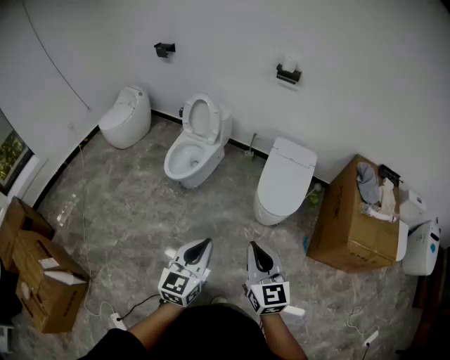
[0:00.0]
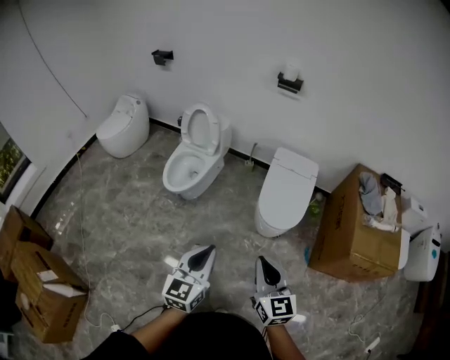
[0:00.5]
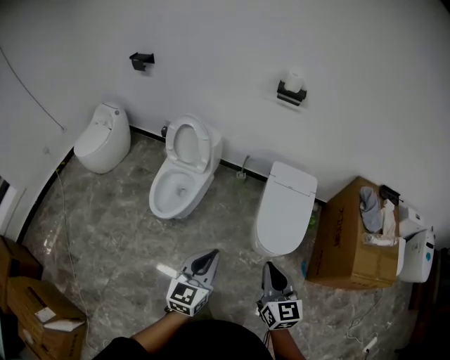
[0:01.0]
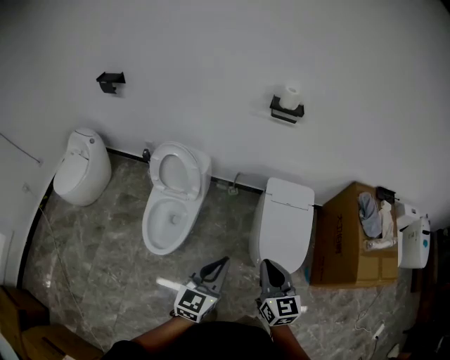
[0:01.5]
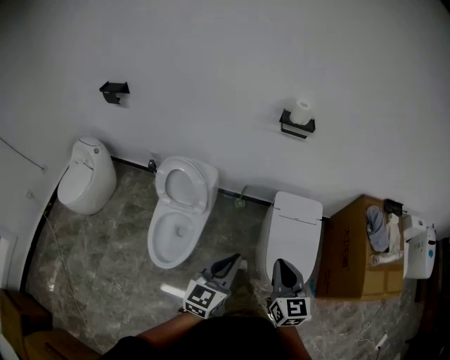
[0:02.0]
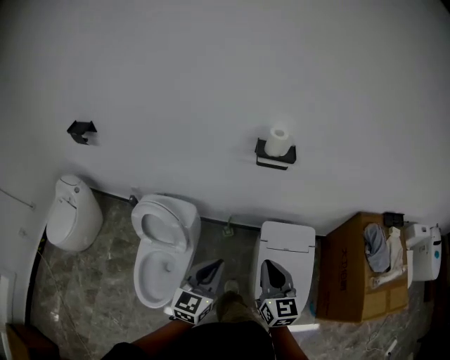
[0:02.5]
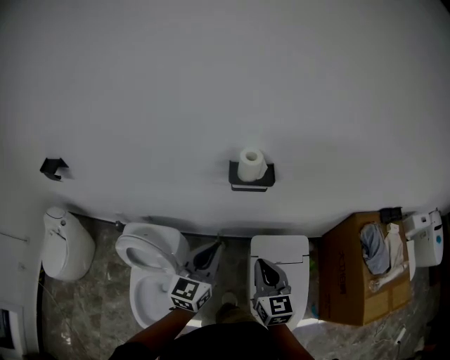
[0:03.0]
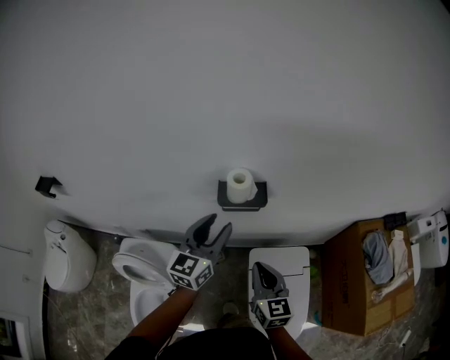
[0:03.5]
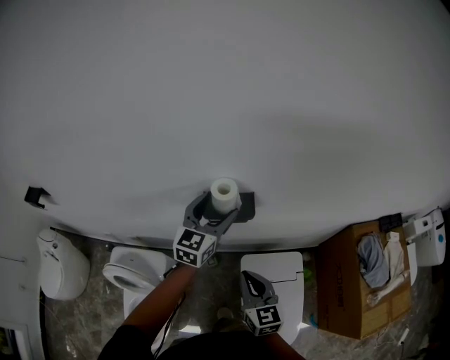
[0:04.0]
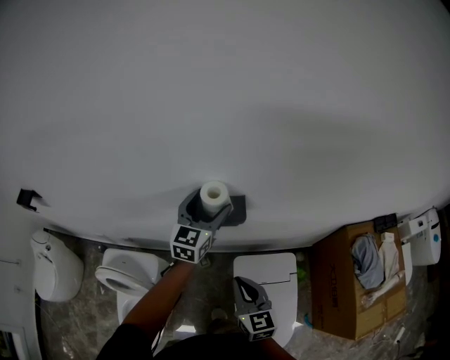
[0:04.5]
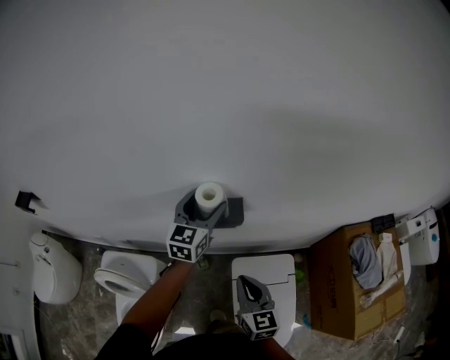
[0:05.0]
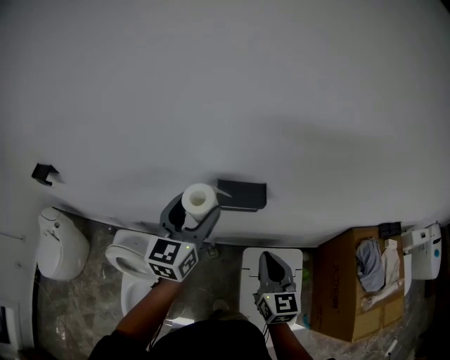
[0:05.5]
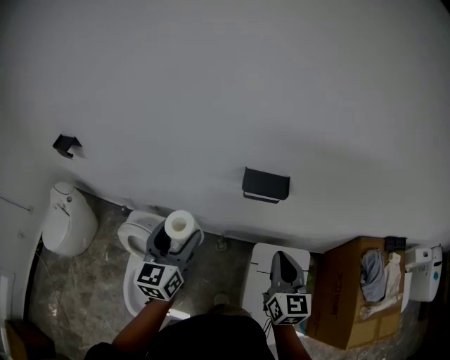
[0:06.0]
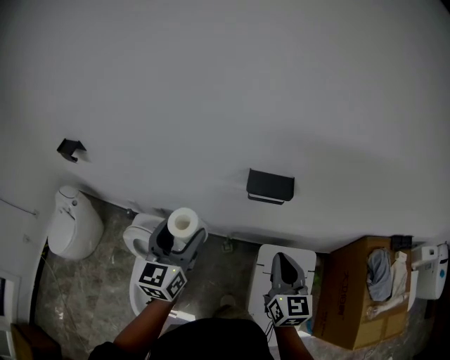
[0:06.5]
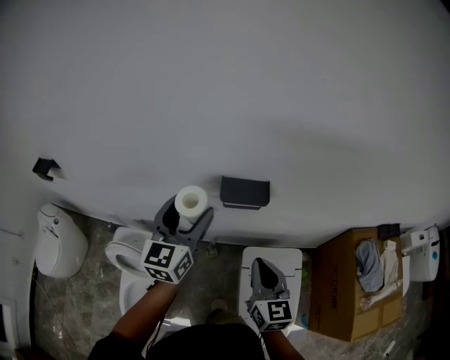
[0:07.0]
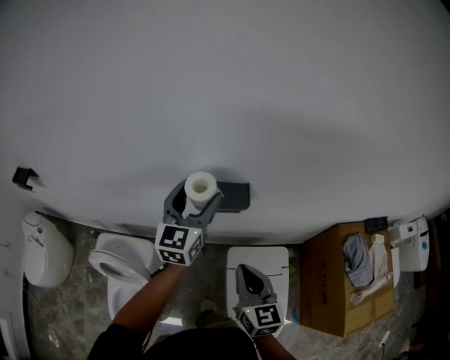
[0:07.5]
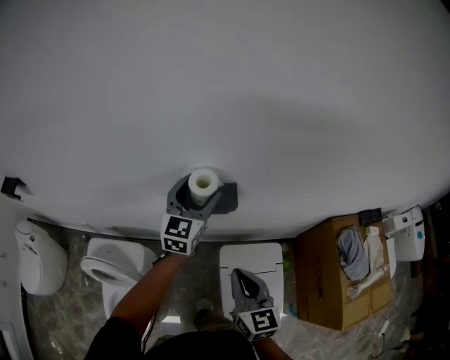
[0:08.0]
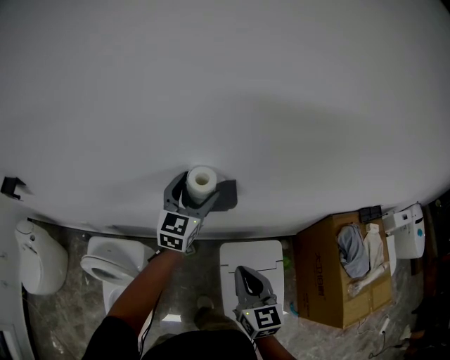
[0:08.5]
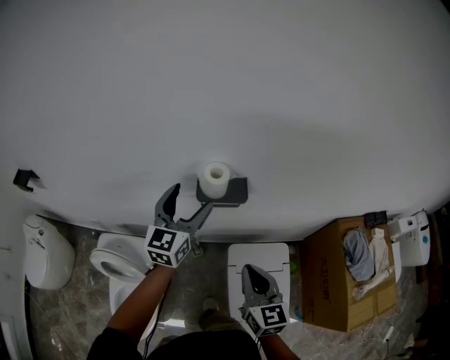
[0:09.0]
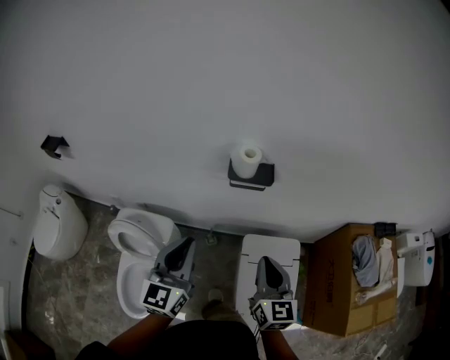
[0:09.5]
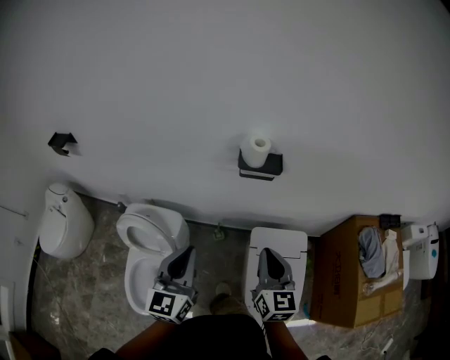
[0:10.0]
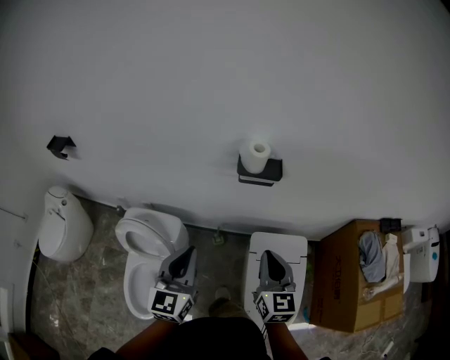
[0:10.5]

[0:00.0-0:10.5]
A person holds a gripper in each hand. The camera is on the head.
0:00.0 to 0:02.0: Both grippers are carried forward, about 60 cm. The left gripper rotates about 20 degrees, while the right gripper turns by about 20 degrees.
0:02.0 to 0:04.0: Both grippers are carried forward, approximately 60 cm. The left gripper opens.
0:04.0 to 0:06.5: The left gripper is displaced backward and to the left by about 30 cm, and changes its angle by about 30 degrees, while the right gripper heads upward and backward, covering approximately 10 cm.
0:06.5 to 0:08.5: The right gripper shifts by some 5 cm; the left gripper goes approximately 30 cm forward and to the right, and turns by about 20 degrees.
0:08.5 to 0:10.5: The right gripper goes approximately 10 cm backward. Meanwhile the left gripper is displaced backward and to the left by some 40 cm, rotates roughly 20 degrees, and closes its fingers.

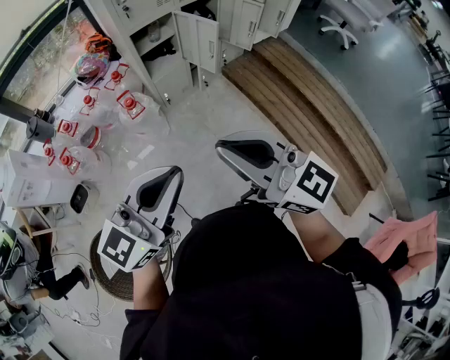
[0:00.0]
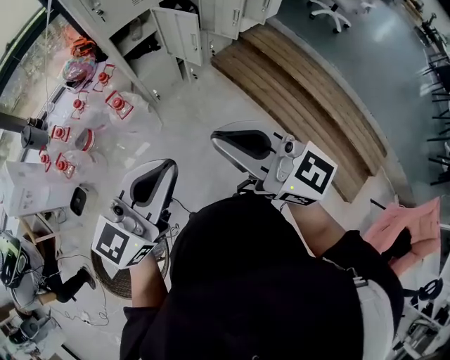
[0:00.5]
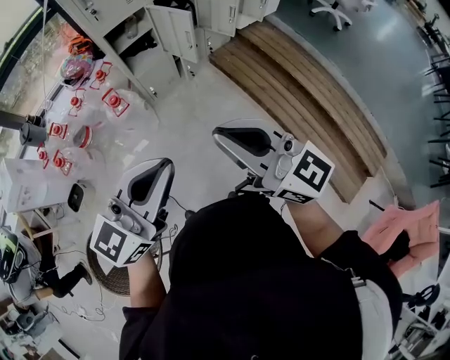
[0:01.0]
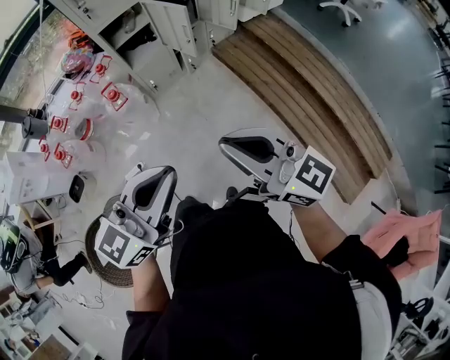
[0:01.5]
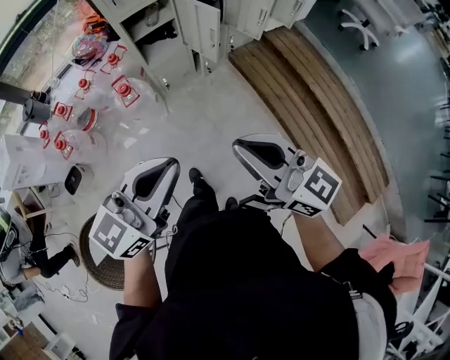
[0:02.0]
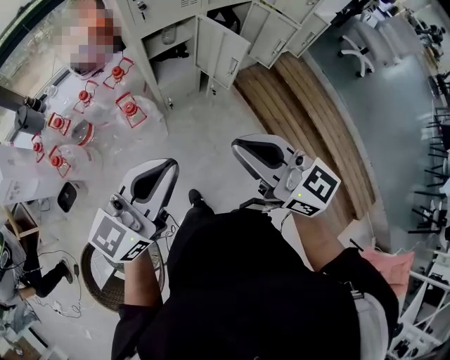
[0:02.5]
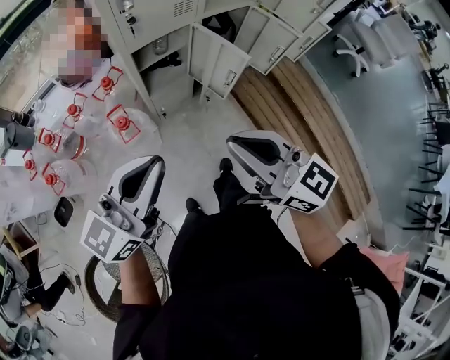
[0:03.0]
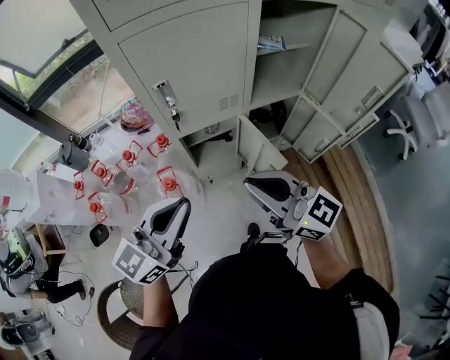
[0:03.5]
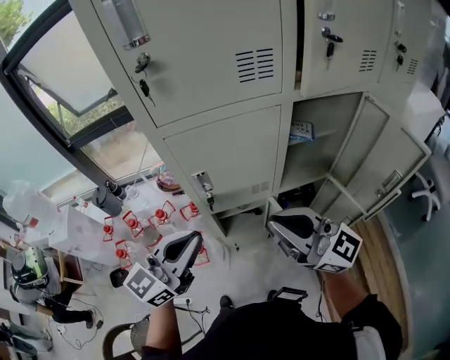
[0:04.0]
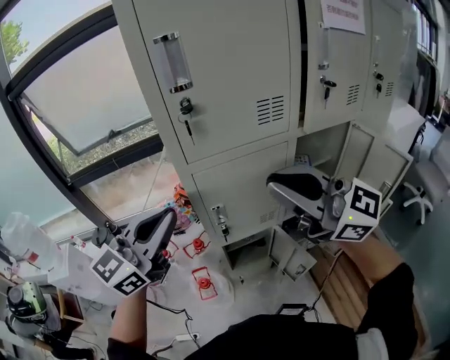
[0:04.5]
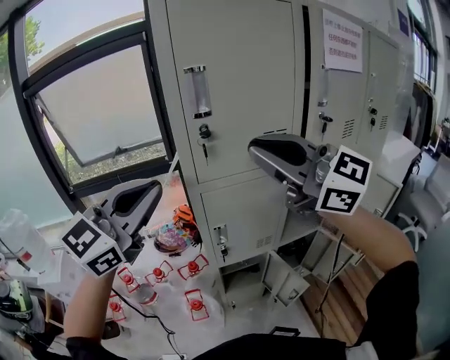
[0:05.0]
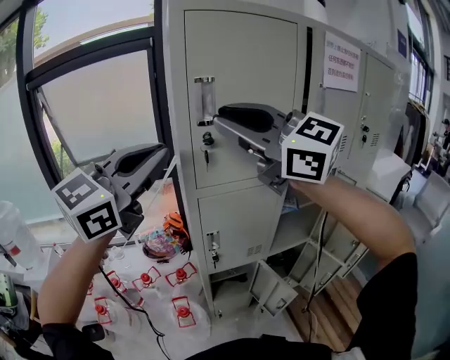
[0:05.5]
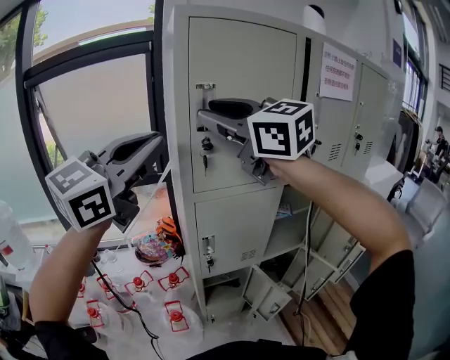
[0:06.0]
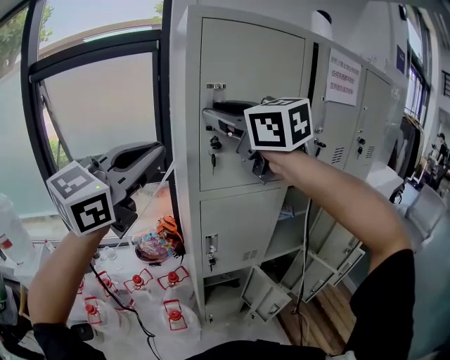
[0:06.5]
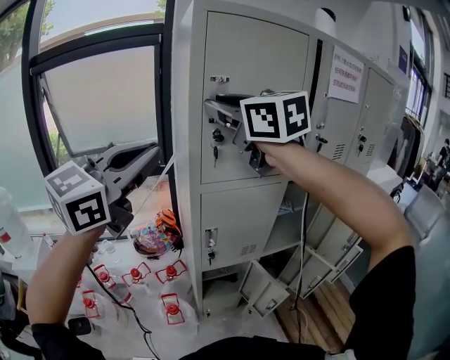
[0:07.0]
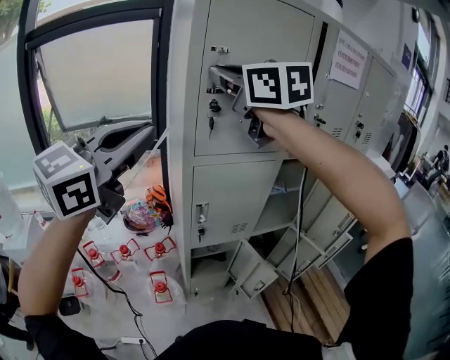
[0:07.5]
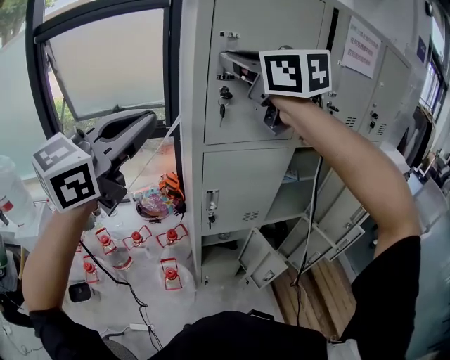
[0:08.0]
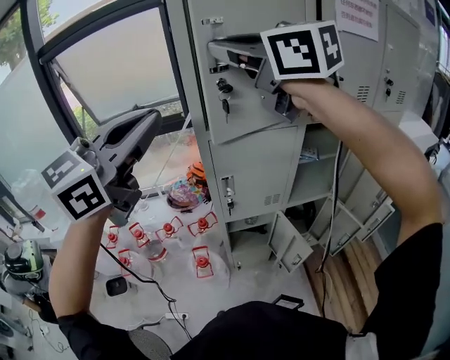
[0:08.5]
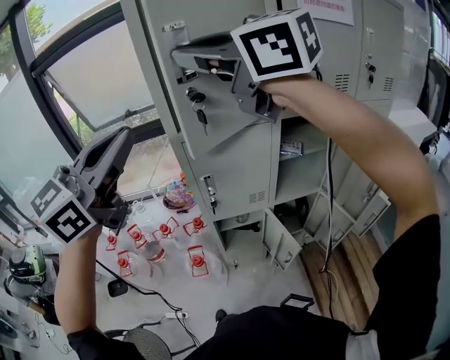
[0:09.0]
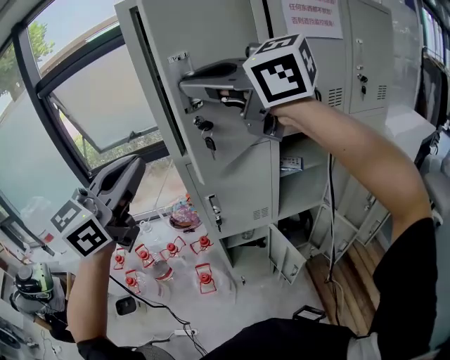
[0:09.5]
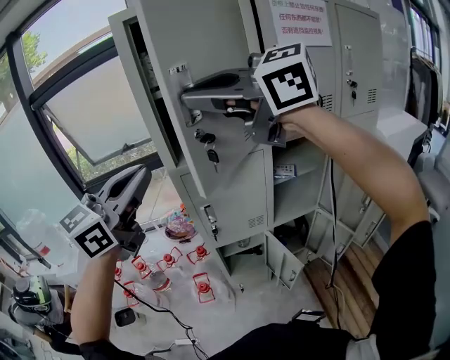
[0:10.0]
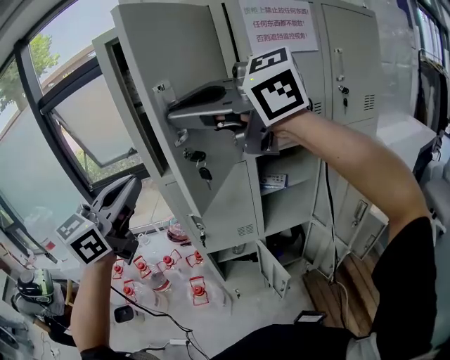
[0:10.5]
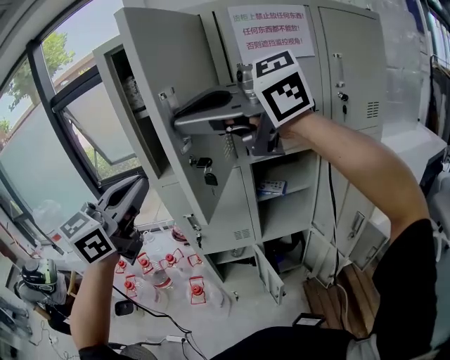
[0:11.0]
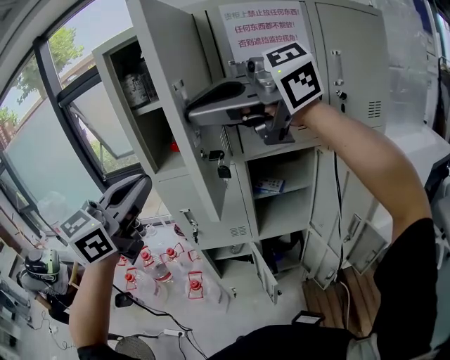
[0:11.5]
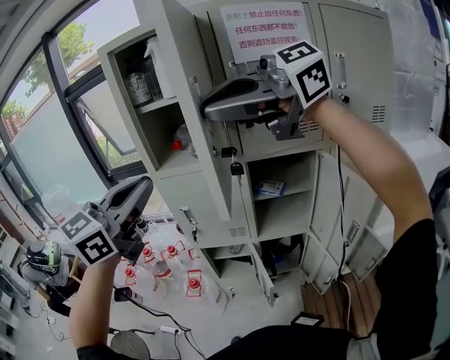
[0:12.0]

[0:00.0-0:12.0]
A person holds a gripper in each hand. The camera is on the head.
0:00.0 to 0:02.0: The right gripper moves to the right, forward and downward, about 15 cm, while the left gripper travels forward and to the right by some 10 cm.
0:02.0 to 0:04.0: The two grippers travel together, forward, some 50 cm. The left gripper swivels approximately 20 degrees. The right gripper changes its angle by roughly 30 degrees.
0:04.0 to 0:06.0: The right gripper shifts approximately 40 cm upward and to the left, turns by some 30 degrees, and opens. Meanwhile the left gripper goes about 35 cm upward, and swivels roughly 20 degrees.
0:06.0 to 0:08.0: The left gripper heads downward, covering some 5 cm. Meanwhile the right gripper closes its fingers.
0:08.0 to 0:10.0: The right gripper is displaced backward and to the right by about 15 cm, and swivels some 30 degrees; the left gripper travels to the right by roughly 10 cm.
0:10.0 to 0:12.0: The right gripper shifts by approximately 20 cm, and swivels approximately 40 degrees; the left gripper moves roughly 15 cm.

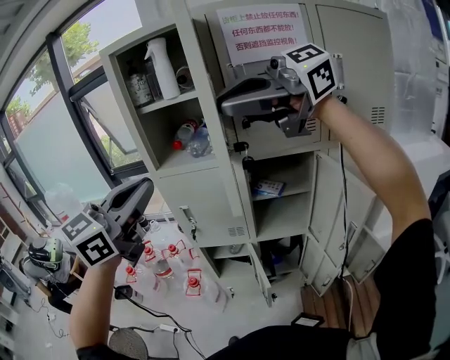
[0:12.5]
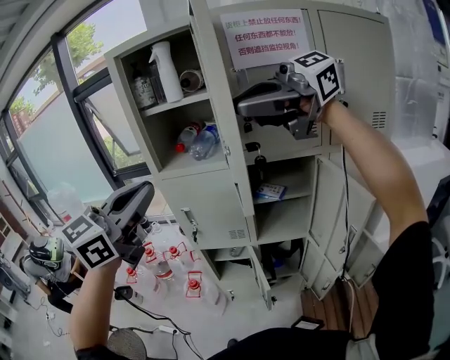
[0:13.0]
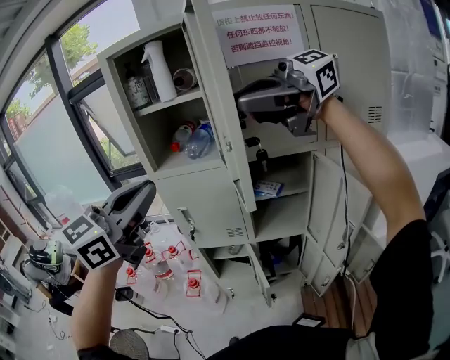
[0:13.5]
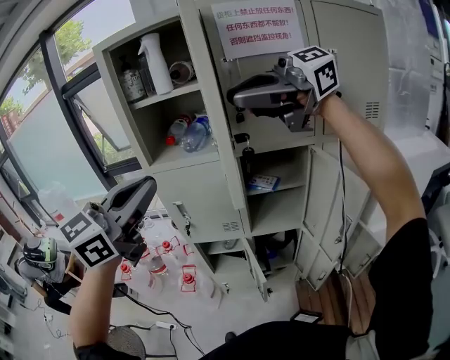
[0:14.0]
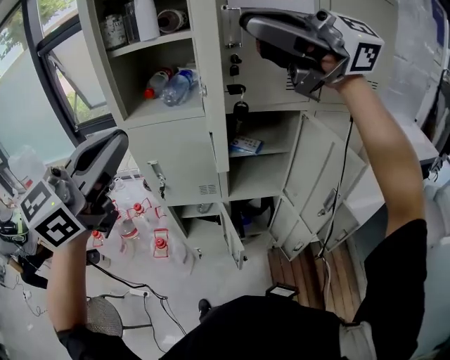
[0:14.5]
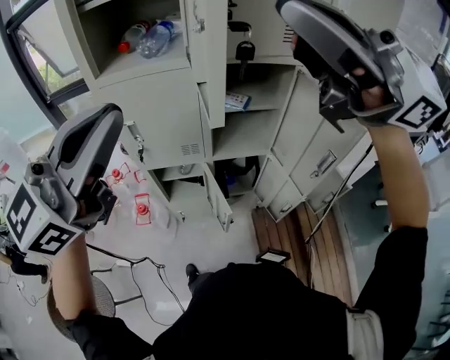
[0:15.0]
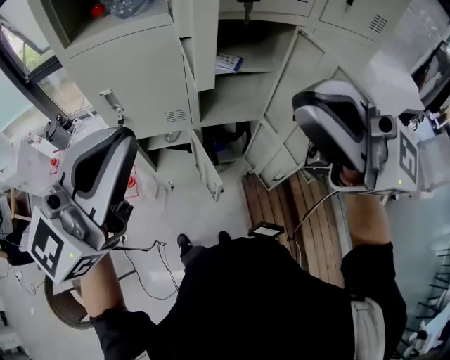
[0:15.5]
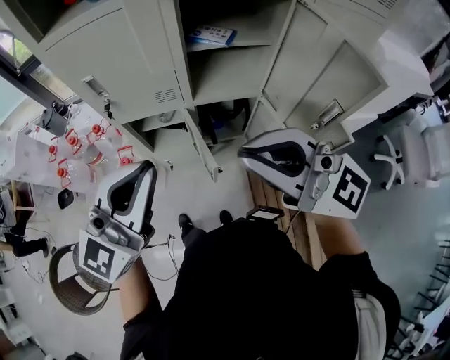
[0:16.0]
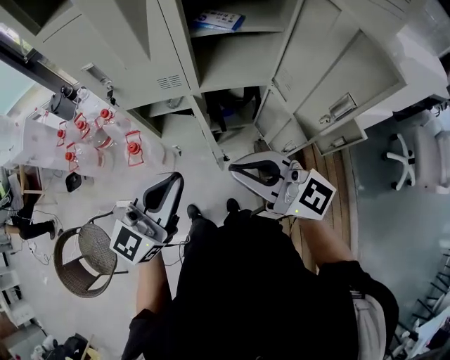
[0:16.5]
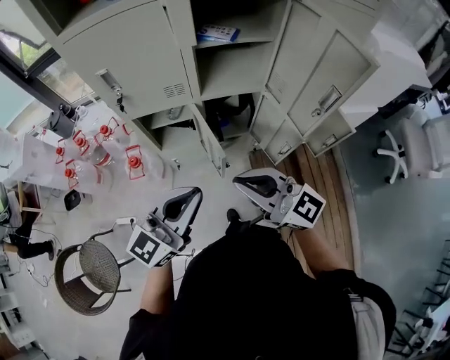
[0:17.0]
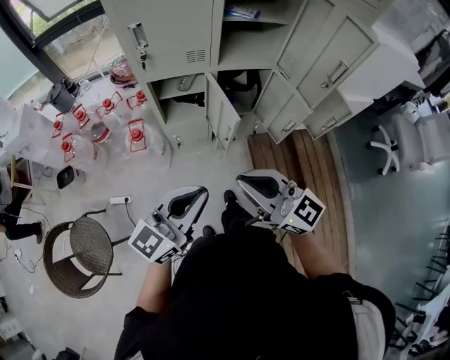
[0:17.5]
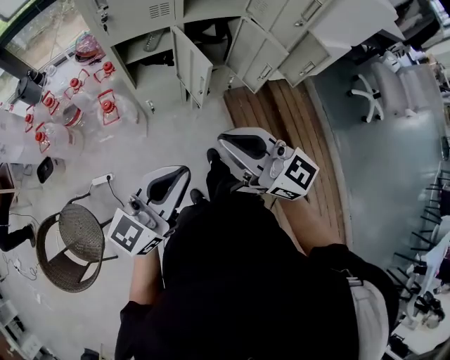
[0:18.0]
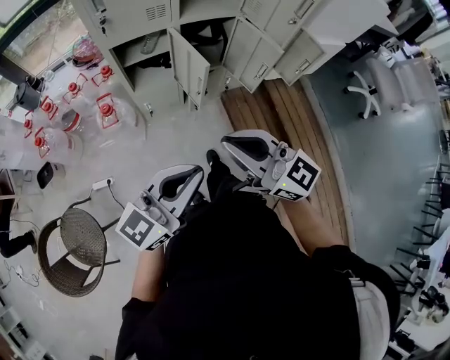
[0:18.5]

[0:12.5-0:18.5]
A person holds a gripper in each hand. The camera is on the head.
0:12.5 to 0:14.5: There are only small adjustments of the grippers.
0:14.5 to 0:16.5: The grippers both shift downward by about 40 cm. The right gripper rotates about 40 degrees.
0:16.5 to 0:18.5: The left gripper goes about 25 cm backward, and changes its angle by some 20 degrees. Meanwhile the right gripper is displaced backward and to the left by some 25 cm.
